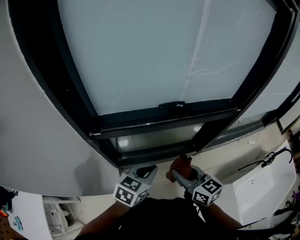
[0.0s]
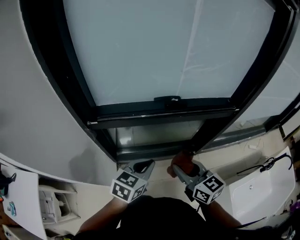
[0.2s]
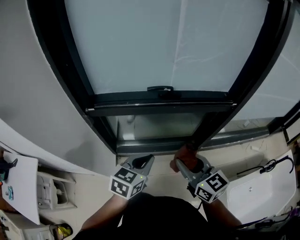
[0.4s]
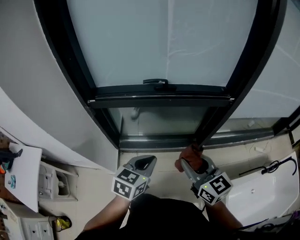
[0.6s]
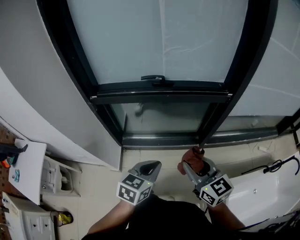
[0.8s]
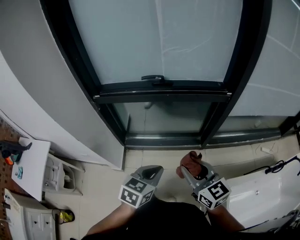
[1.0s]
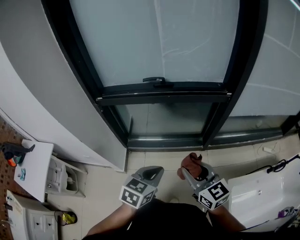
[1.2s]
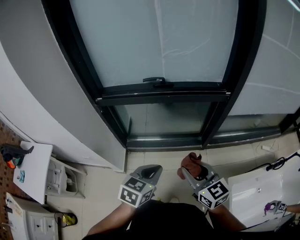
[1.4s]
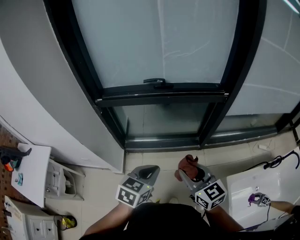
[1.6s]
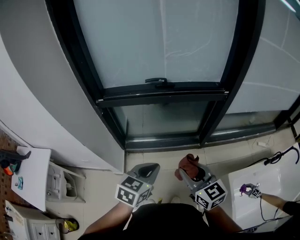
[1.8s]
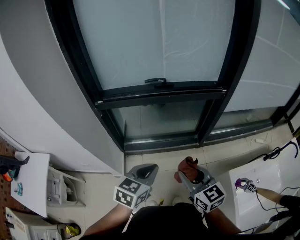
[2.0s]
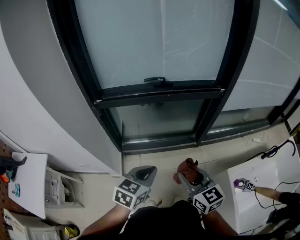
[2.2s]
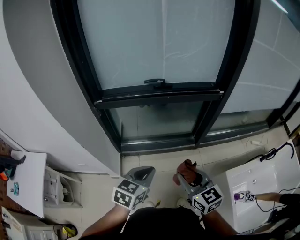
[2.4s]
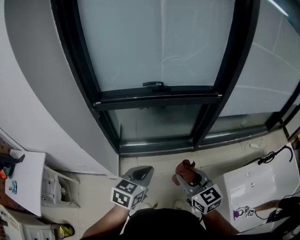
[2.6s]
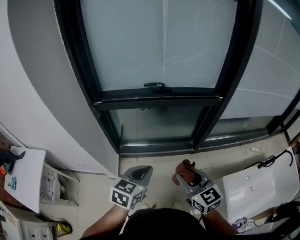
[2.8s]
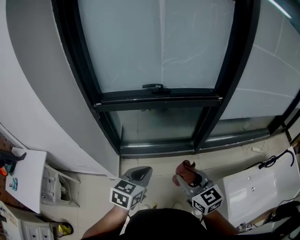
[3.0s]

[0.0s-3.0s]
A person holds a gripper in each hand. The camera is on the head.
0.0s to 1.6s: The two grippers go about 25 cm backward and to the right.

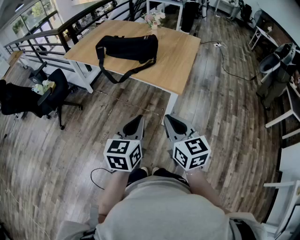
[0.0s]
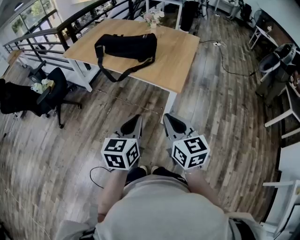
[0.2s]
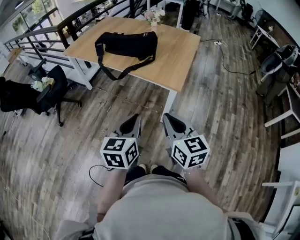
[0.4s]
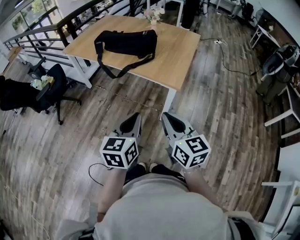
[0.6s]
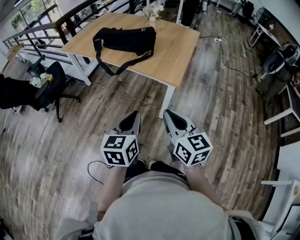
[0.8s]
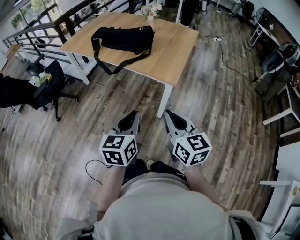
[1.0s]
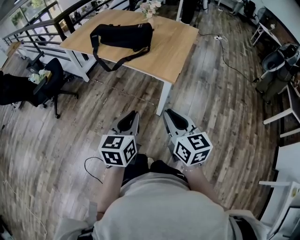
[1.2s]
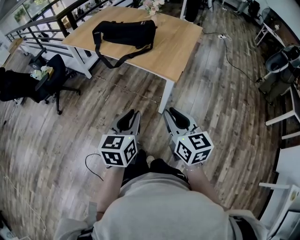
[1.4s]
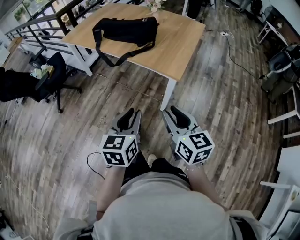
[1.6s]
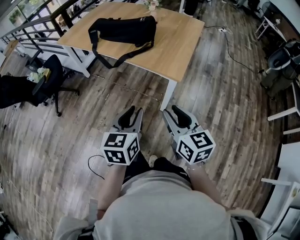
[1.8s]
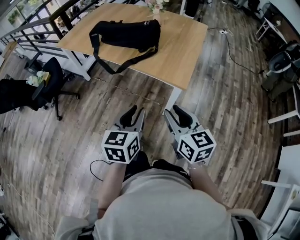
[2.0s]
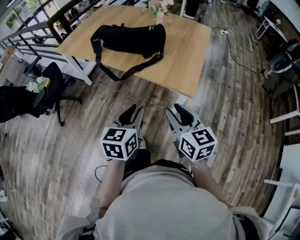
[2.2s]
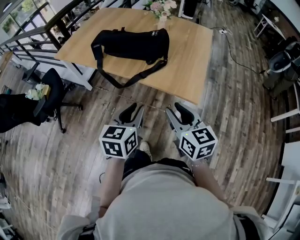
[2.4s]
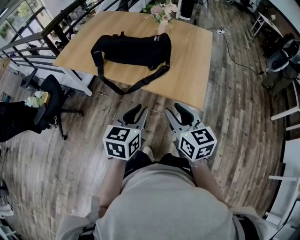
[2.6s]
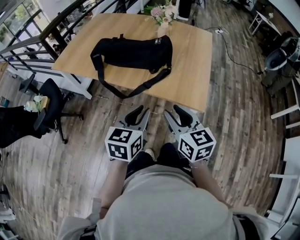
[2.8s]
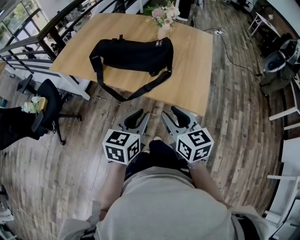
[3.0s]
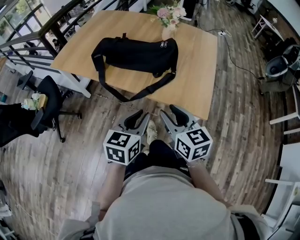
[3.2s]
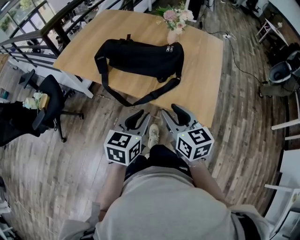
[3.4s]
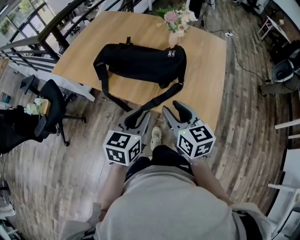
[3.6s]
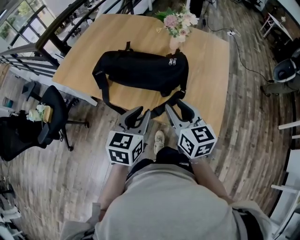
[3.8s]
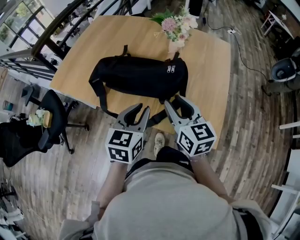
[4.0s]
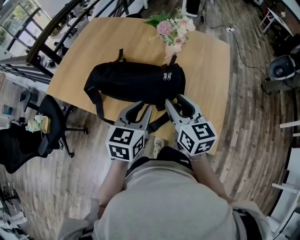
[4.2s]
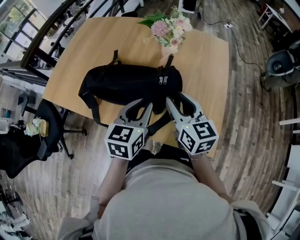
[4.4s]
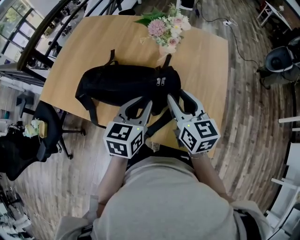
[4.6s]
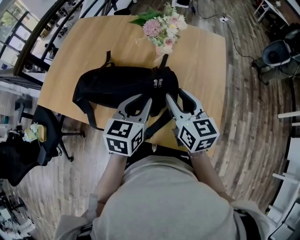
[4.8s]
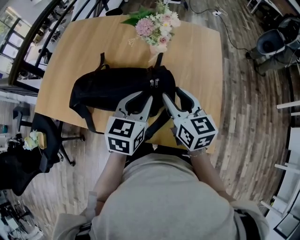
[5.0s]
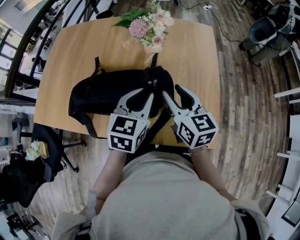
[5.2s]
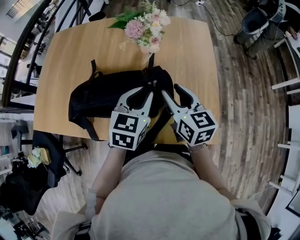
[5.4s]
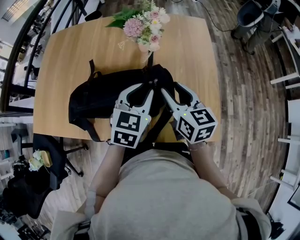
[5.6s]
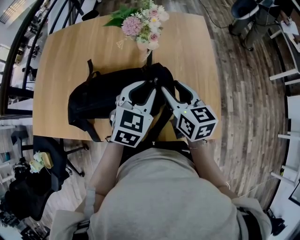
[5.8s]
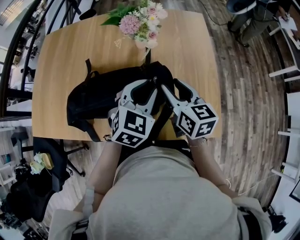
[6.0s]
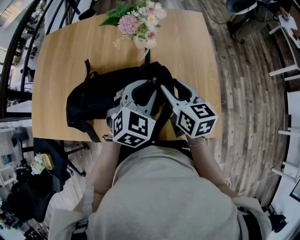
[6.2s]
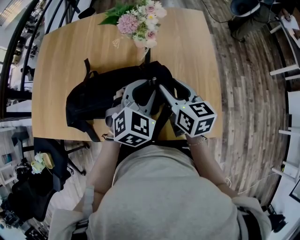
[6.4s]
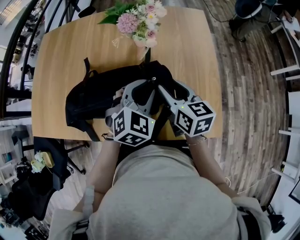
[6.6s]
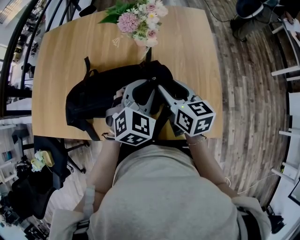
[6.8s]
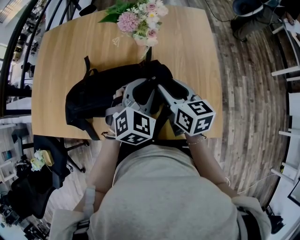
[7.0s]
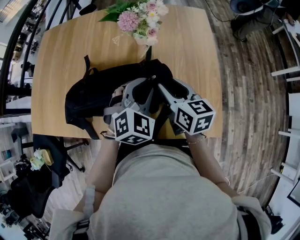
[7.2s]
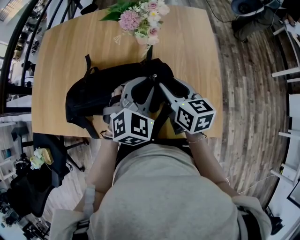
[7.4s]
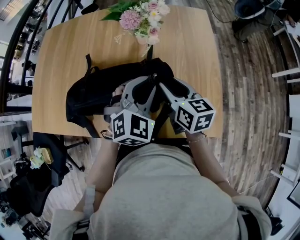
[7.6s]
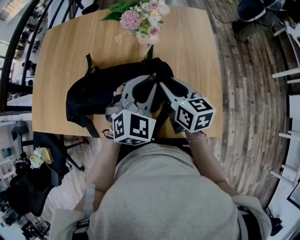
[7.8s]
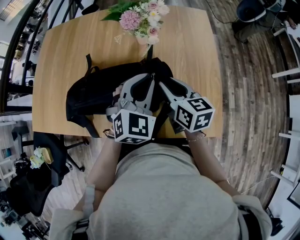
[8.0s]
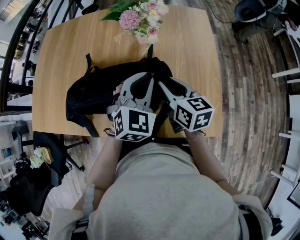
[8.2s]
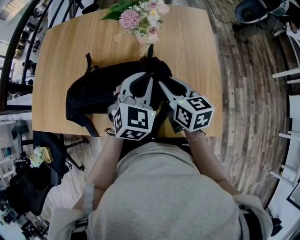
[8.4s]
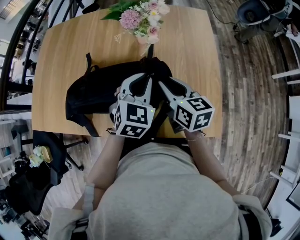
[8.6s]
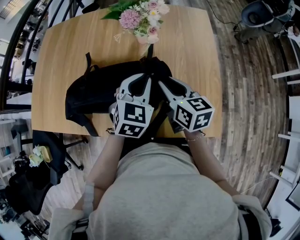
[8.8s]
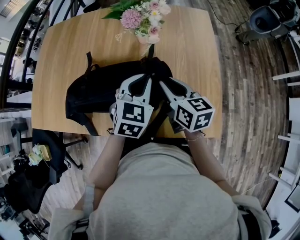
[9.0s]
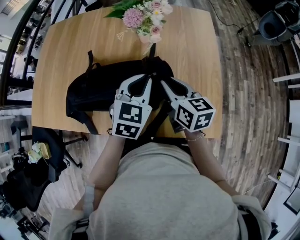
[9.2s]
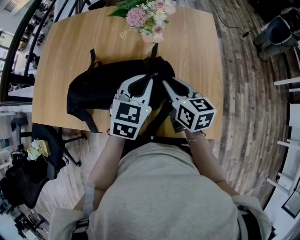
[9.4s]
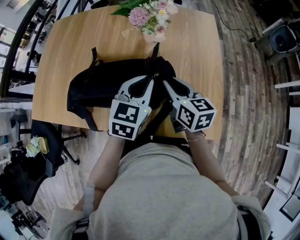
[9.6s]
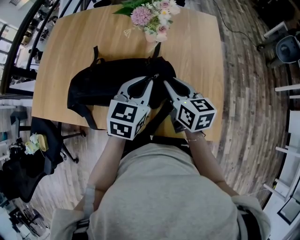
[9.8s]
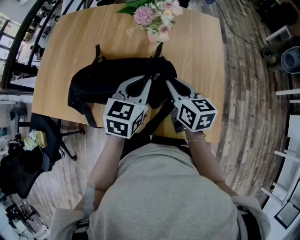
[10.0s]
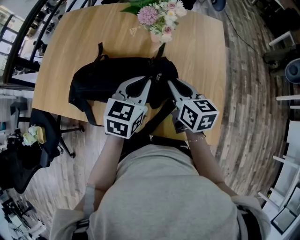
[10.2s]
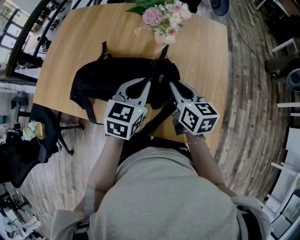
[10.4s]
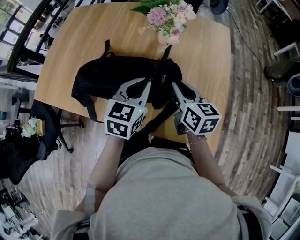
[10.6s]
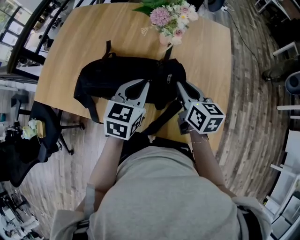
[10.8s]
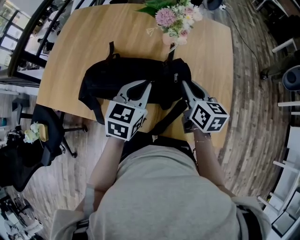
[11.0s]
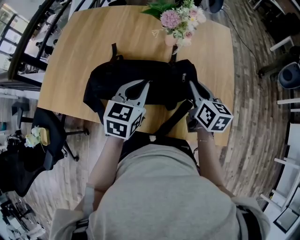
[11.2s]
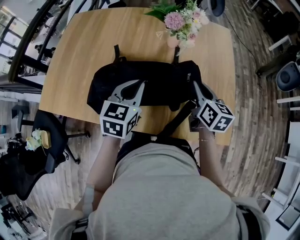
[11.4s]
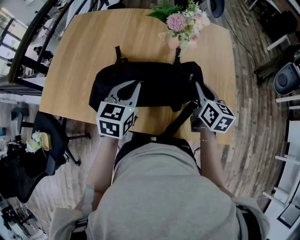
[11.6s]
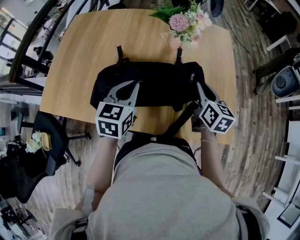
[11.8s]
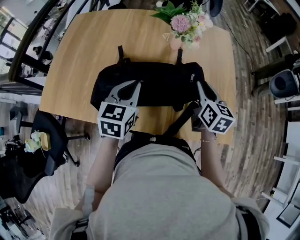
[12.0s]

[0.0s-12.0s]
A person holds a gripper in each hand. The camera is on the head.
0.0s to 1.6s: The right gripper shifts by about 5 cm, and opens.
1.6s to 3.0s: The right gripper shifts approximately 30 cm forward and to the left. Meanwhile the left gripper moves forward, some 25 cm.
3.0s to 4.4s: Both grippers travel together forward, approximately 30 cm.
4.4s to 6.0s: Both grippers travel together forward, approximately 5 cm. The left gripper changes its angle by approximately 40 degrees.
6.0s to 7.6s: There are only small adjustments of the grippers.
7.6s to 9.0s: The left gripper changes its angle by roughly 30 degrees.
9.0s to 10.4s: The grippers move only a little.
10.4s to 12.0s: The right gripper turns by approximately 20 degrees; the left gripper travels to the left by roughly 15 cm.

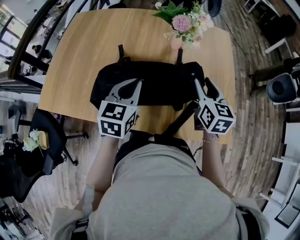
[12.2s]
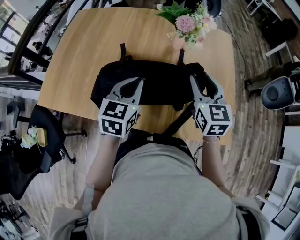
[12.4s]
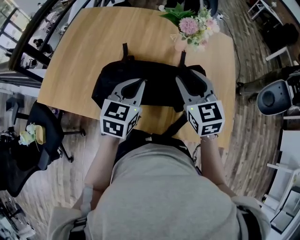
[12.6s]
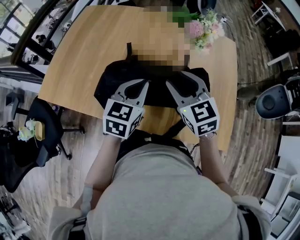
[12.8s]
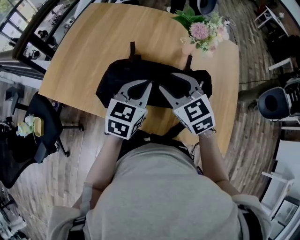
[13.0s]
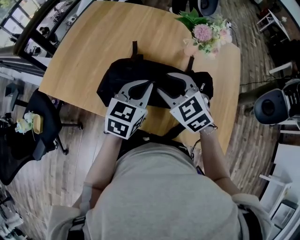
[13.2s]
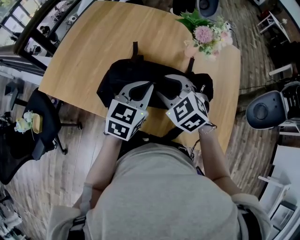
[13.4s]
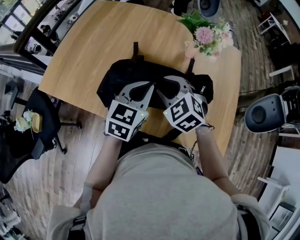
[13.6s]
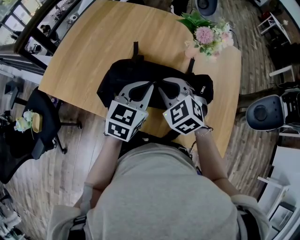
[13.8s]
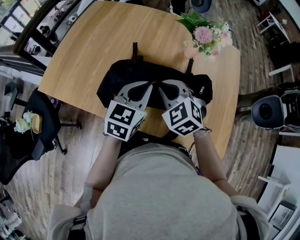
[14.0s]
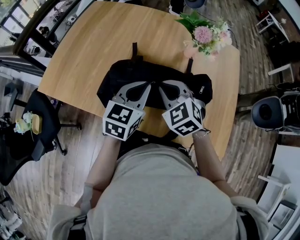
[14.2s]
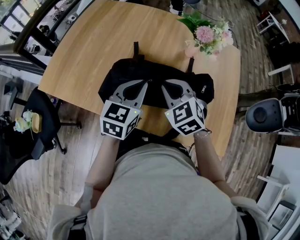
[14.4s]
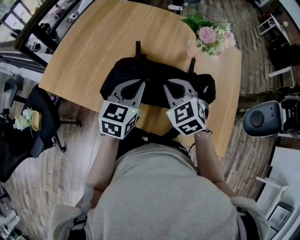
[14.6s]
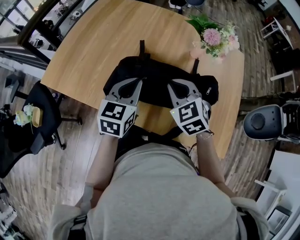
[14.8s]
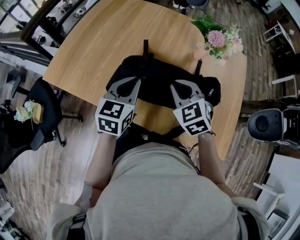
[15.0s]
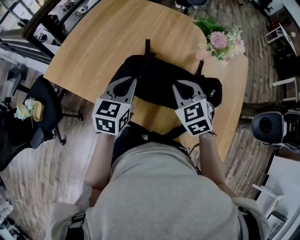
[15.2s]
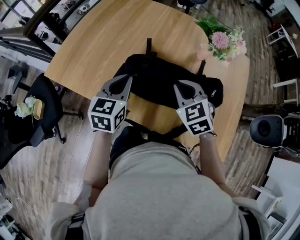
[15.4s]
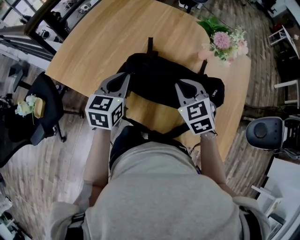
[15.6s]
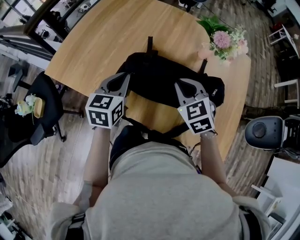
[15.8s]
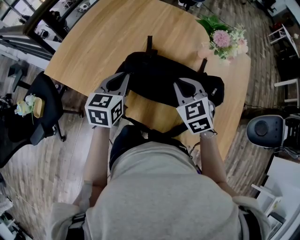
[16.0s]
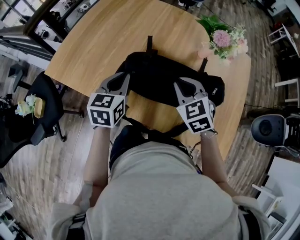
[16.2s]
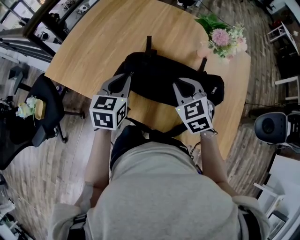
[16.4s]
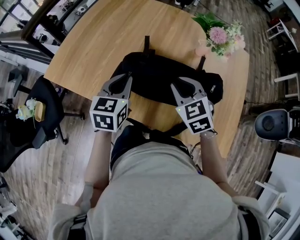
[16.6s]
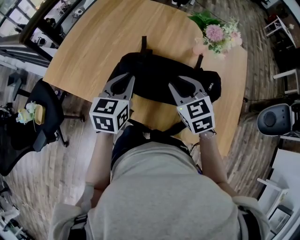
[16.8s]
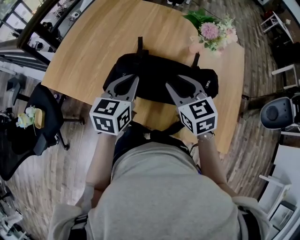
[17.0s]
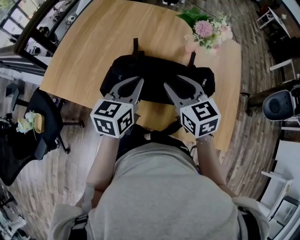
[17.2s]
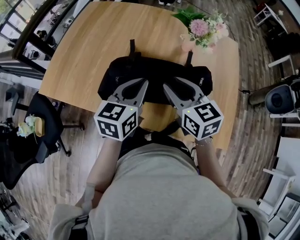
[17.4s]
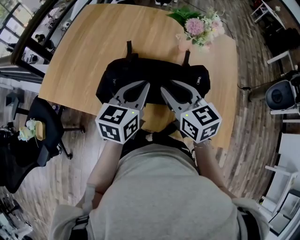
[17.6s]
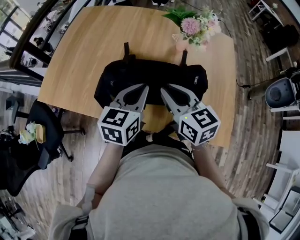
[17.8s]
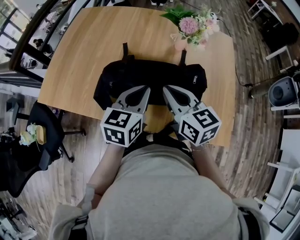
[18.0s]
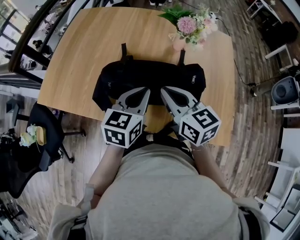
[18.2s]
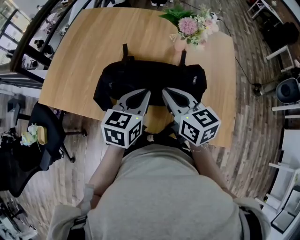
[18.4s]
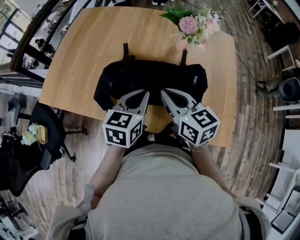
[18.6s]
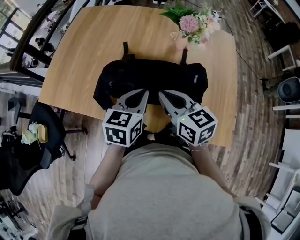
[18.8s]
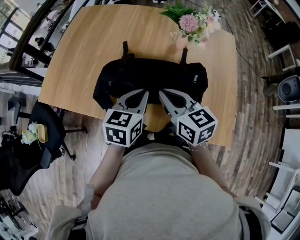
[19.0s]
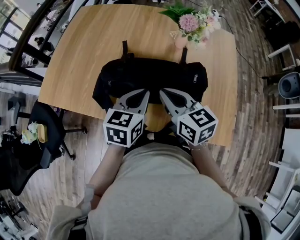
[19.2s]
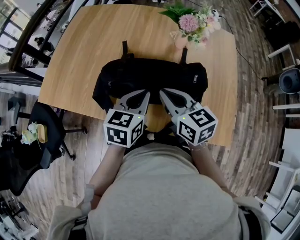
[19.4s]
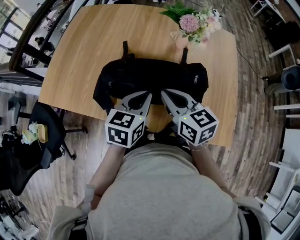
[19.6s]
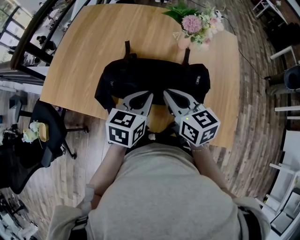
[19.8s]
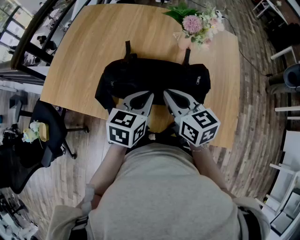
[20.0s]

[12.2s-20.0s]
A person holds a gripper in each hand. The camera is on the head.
12.2s to 13.8s: The right gripper heads to the left, covering roughly 20 cm, rotates around the line of its fingers by roughly 50 degrees, counterclockwise from behind, and closes.
13.8s to 15.4s: The left gripper travels to the left by some 10 cm.
15.4s to 16.8s: The right gripper opens.
16.8s to 18.4s: The left gripper moves to the right, some 10 cm. Meanwhile the right gripper shifts by roughly 5 cm, swivels roughly 30 degrees, and closes up.
18.4s to 20.0s: There are only small adjustments of the grippers.

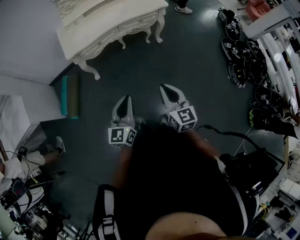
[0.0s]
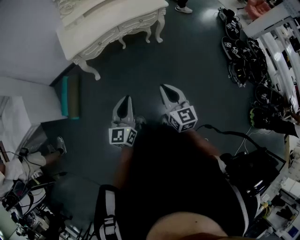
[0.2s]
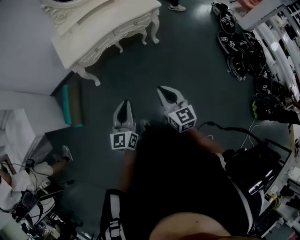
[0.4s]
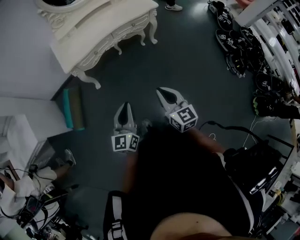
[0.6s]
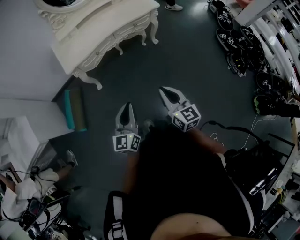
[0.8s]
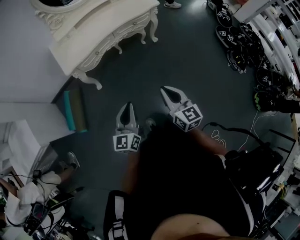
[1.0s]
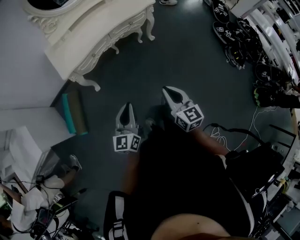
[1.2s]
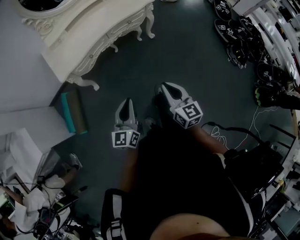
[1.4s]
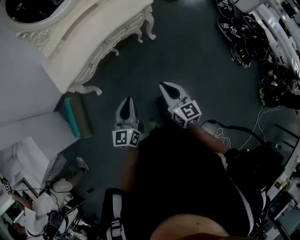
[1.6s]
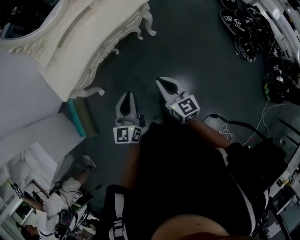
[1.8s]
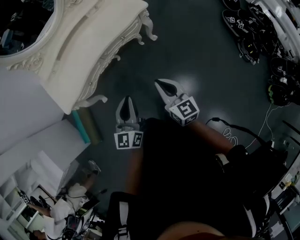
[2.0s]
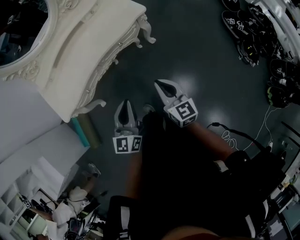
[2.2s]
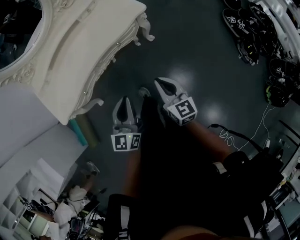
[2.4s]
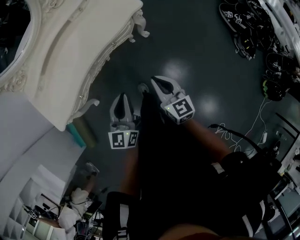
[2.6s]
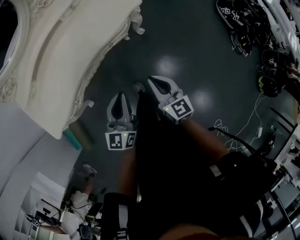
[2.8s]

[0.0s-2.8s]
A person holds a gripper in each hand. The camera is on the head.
0.0s to 1.4s: Both grippers move forward, about 10 cm.
1.4s to 2.8s: The two grippers go roughly 40 cm forward.
